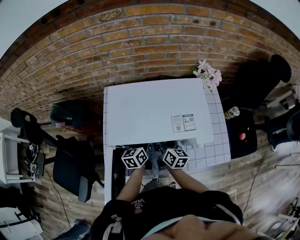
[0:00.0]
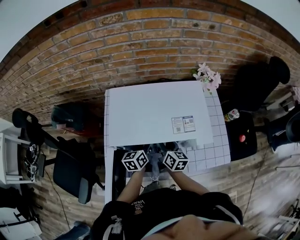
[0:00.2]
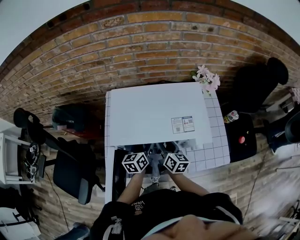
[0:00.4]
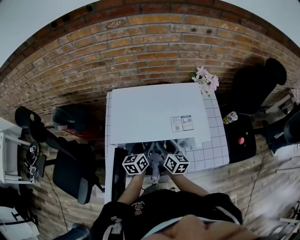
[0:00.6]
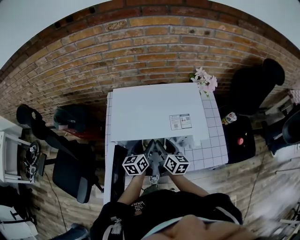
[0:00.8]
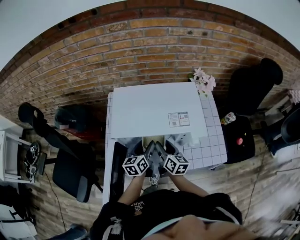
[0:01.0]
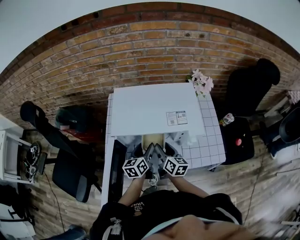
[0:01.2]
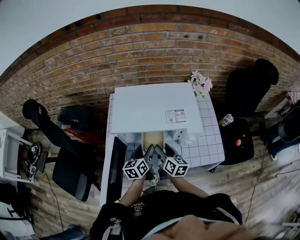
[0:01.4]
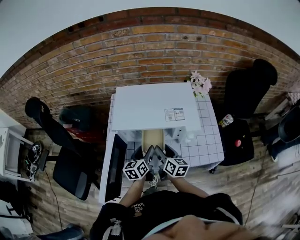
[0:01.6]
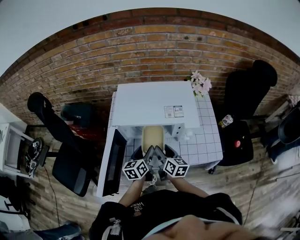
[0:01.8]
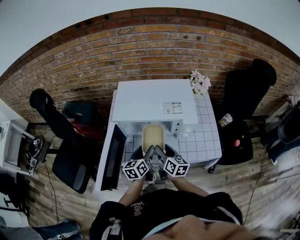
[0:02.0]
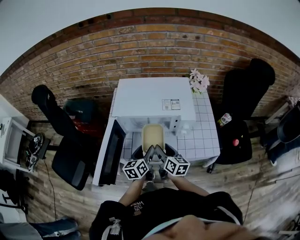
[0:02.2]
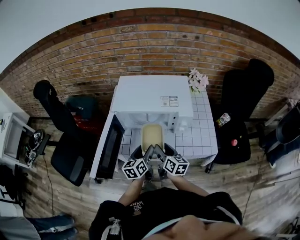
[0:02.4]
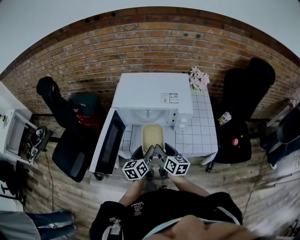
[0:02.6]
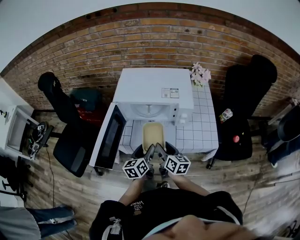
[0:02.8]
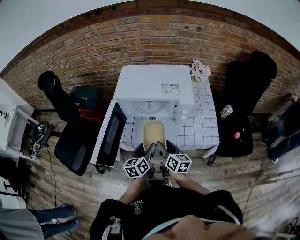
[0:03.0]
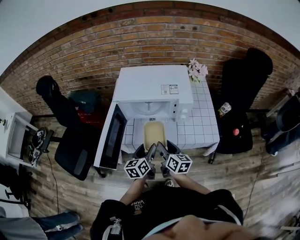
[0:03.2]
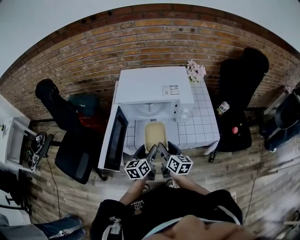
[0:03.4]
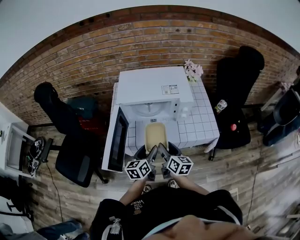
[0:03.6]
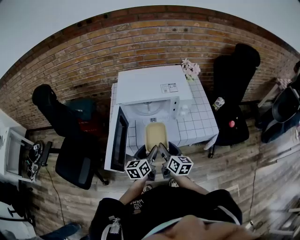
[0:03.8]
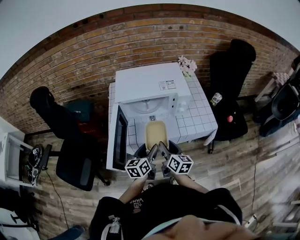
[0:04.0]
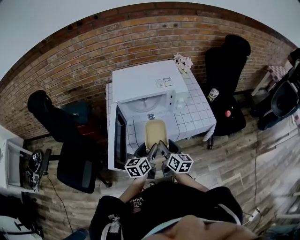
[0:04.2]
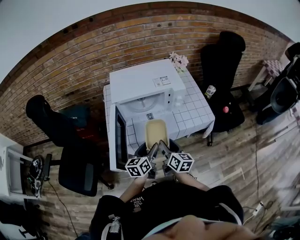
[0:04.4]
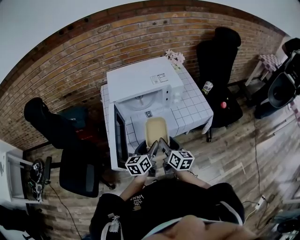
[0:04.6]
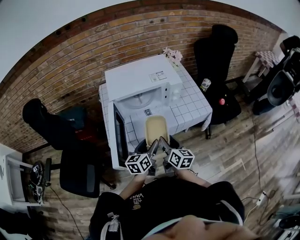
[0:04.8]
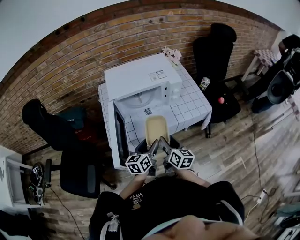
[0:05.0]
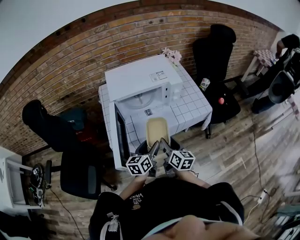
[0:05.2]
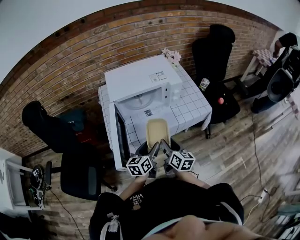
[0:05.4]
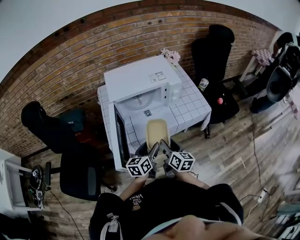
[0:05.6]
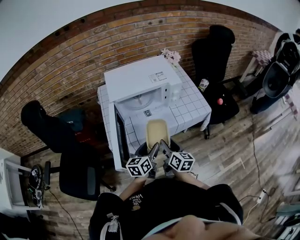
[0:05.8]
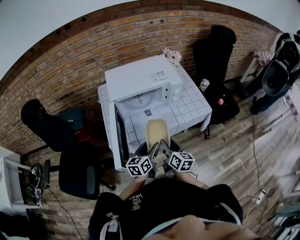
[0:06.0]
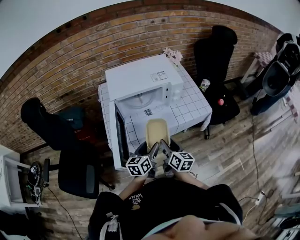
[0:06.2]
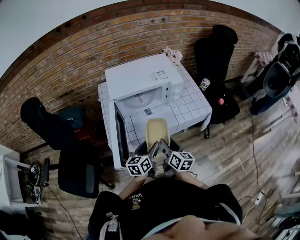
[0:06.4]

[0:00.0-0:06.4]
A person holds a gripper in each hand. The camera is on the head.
0:00.0 to 0:01.6: The two grippers go roughly 10 cm backward.
0:01.6 to 0:03.2: The grippers both shift backward by about 15 cm.
0:03.2 to 0:04.8: The two grippers go about 5 cm backward. The left gripper changes its angle by roughly 20 degrees. Meanwhile the right gripper rotates roughly 20 degrees.
0:04.8 to 0:06.4: The grippers stay close to where they were, moving slightly.

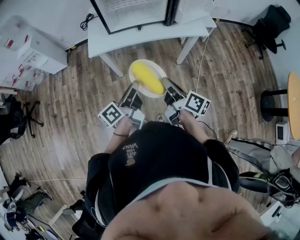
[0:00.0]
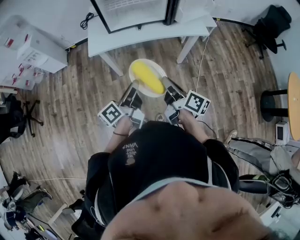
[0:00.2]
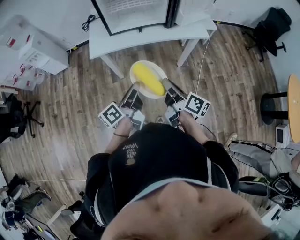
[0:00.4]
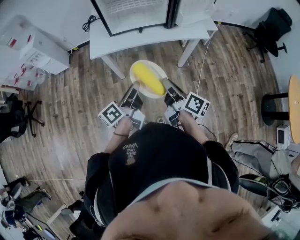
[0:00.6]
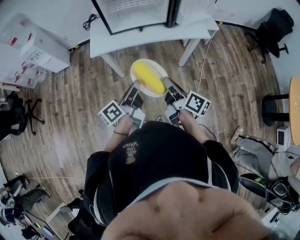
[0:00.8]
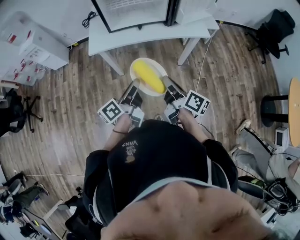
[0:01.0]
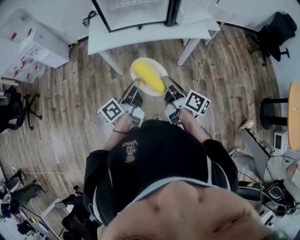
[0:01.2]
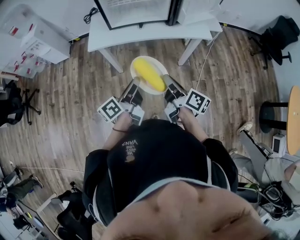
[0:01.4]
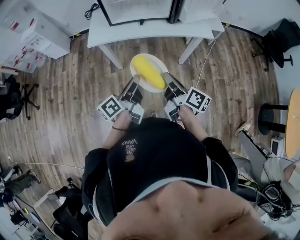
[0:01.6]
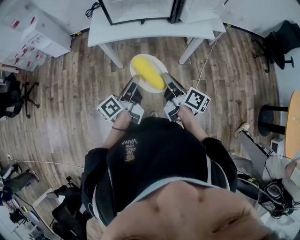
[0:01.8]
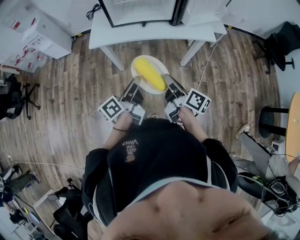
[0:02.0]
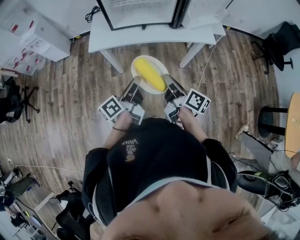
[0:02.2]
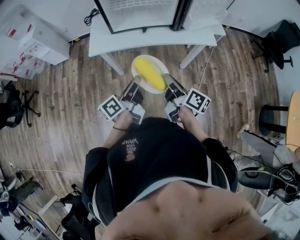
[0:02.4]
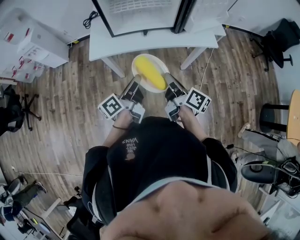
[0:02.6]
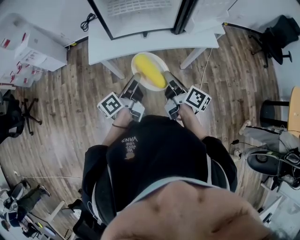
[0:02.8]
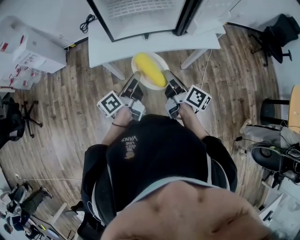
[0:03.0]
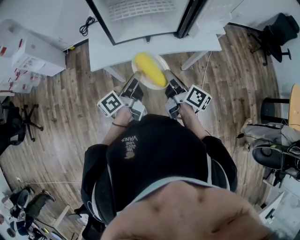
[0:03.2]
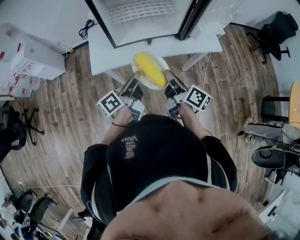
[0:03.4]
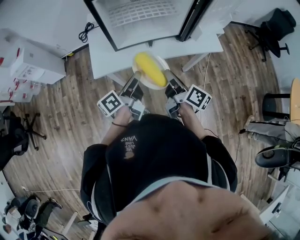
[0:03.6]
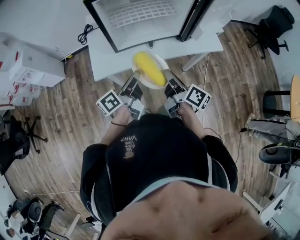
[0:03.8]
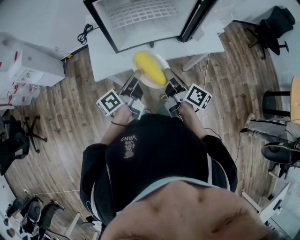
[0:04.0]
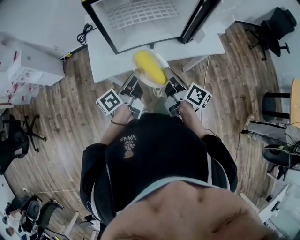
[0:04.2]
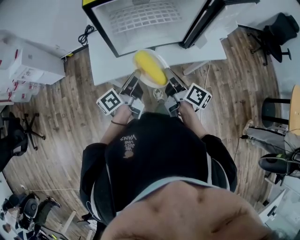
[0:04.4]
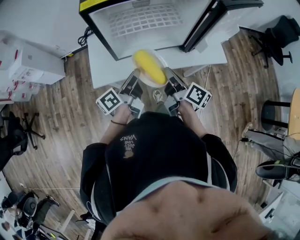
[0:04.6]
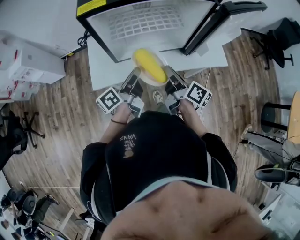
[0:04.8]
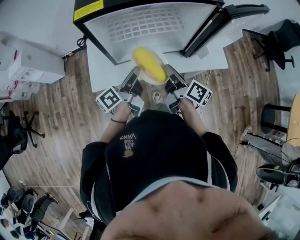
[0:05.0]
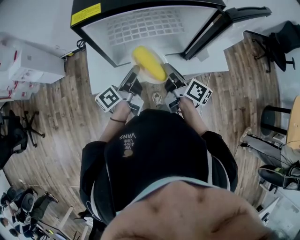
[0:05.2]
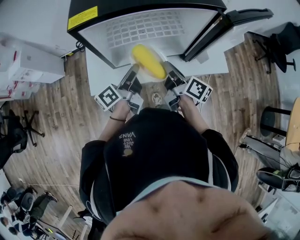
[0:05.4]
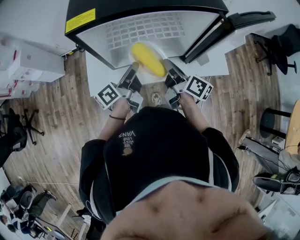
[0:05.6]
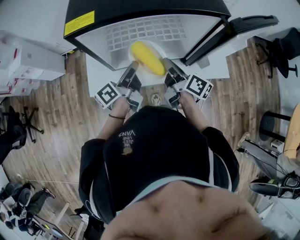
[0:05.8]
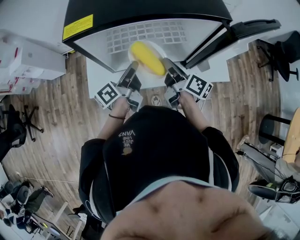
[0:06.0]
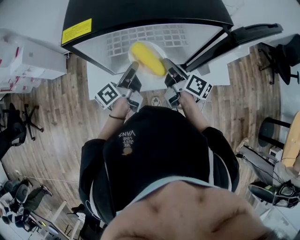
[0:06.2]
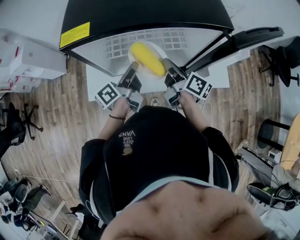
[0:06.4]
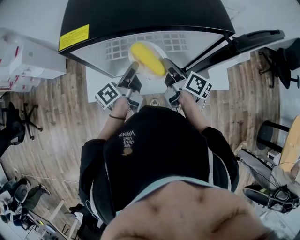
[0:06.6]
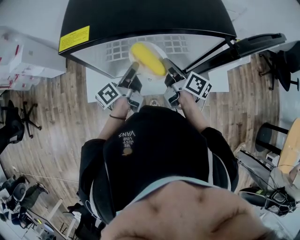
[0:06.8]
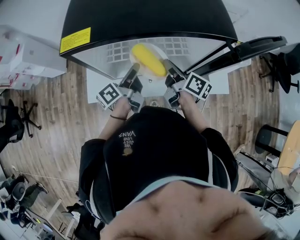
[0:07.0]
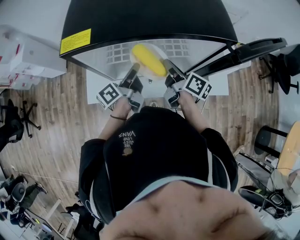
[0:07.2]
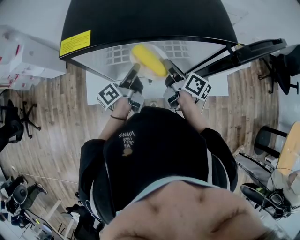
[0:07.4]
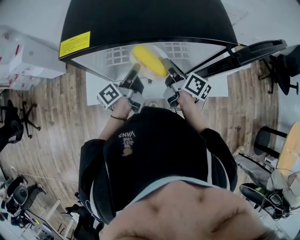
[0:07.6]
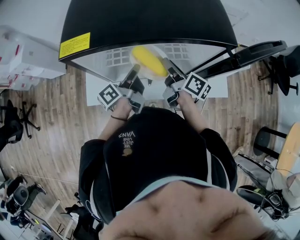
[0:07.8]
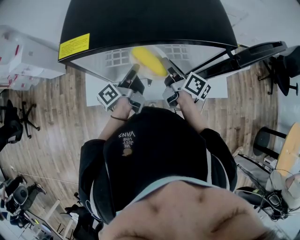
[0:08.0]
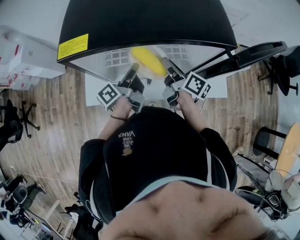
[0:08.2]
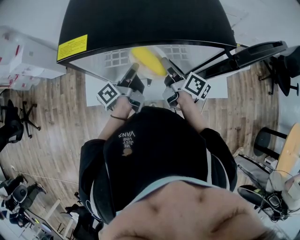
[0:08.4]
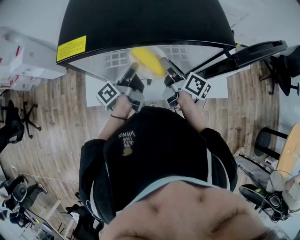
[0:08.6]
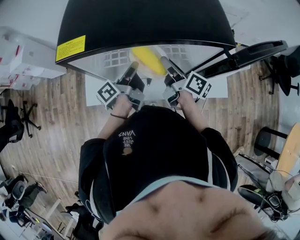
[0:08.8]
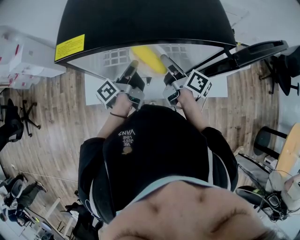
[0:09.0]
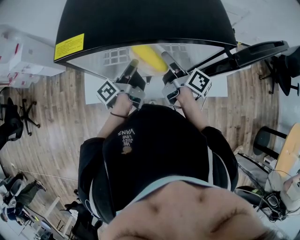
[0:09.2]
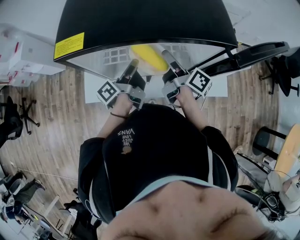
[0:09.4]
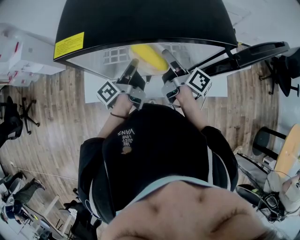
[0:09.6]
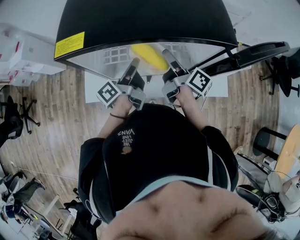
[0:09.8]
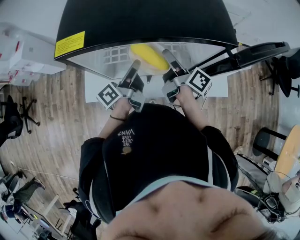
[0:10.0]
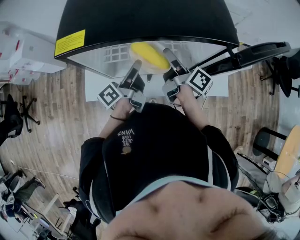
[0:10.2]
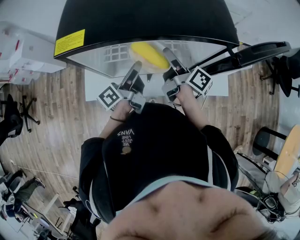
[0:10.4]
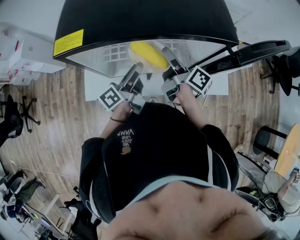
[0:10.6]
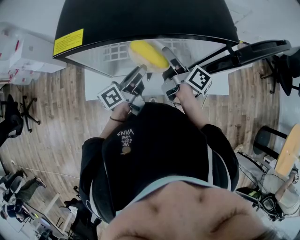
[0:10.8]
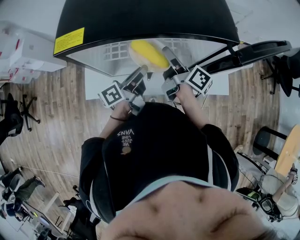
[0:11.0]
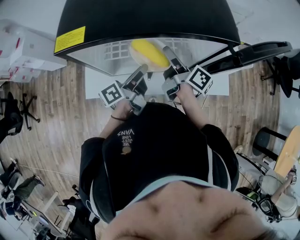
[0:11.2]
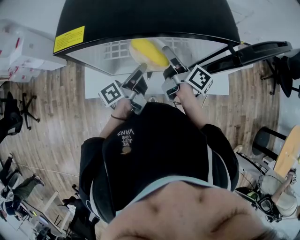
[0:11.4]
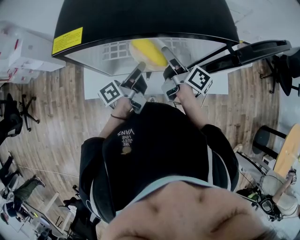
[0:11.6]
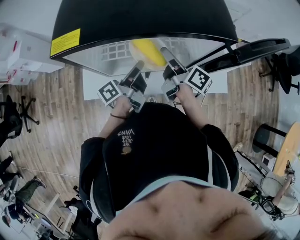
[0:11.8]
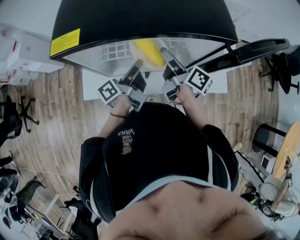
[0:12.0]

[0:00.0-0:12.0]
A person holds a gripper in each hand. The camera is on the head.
0:00.0 to 0:01.6: The right gripper ends up roughly 5 cm from where it was.
0:01.6 to 0:03.0: The left gripper is displaced forward by about 15 cm; the right gripper is displaced forward and to the left by approximately 15 cm.
0:03.0 to 0:04.4: The two grippers go some 10 cm forward.
0:04.4 to 0:06.0: Both grippers move forward, some 15 cm.
0:06.0 to 0:07.6: Both grippers travel together forward, approximately 5 cm.
0:07.6 to 0:09.0: The right gripper opens up.
0:09.0 to 0:10.4: The grippers move only a little.
0:10.4 to 0:12.0: The grippers move only a little.

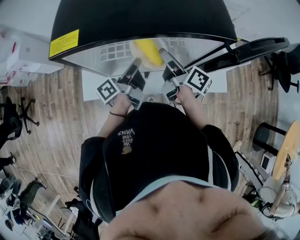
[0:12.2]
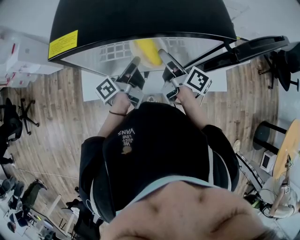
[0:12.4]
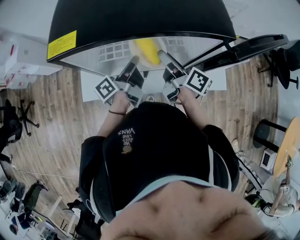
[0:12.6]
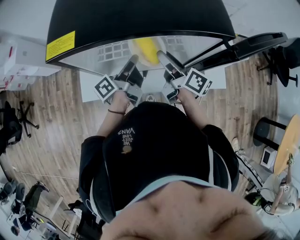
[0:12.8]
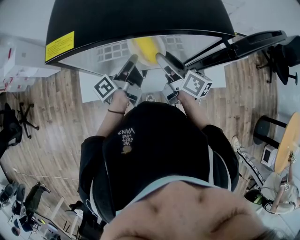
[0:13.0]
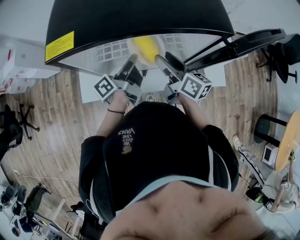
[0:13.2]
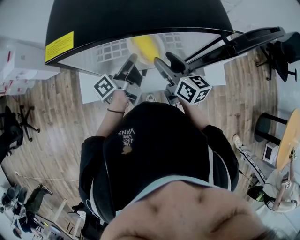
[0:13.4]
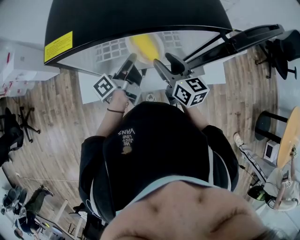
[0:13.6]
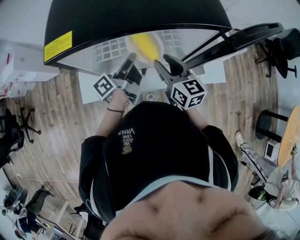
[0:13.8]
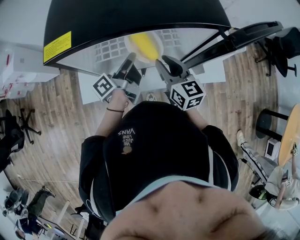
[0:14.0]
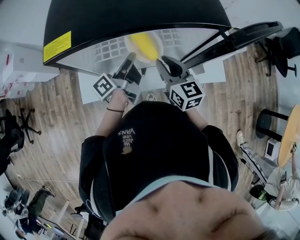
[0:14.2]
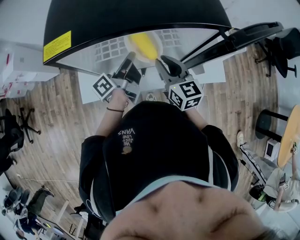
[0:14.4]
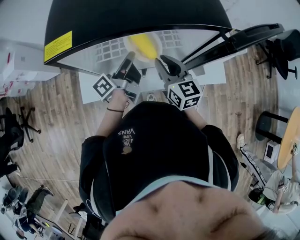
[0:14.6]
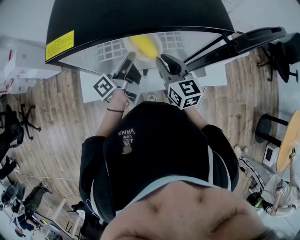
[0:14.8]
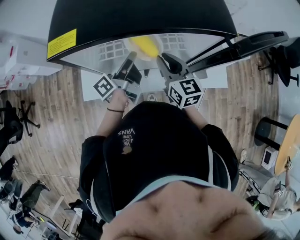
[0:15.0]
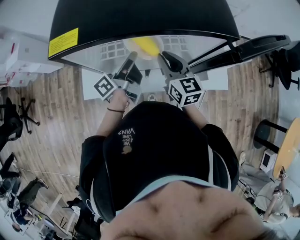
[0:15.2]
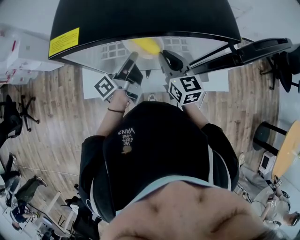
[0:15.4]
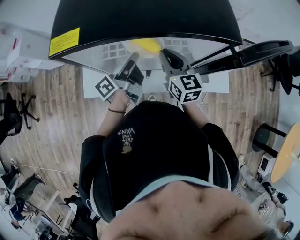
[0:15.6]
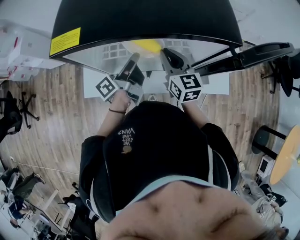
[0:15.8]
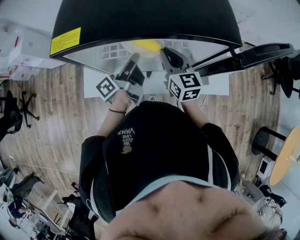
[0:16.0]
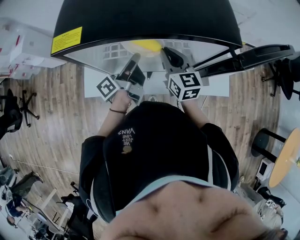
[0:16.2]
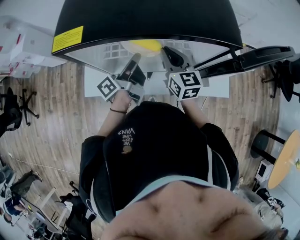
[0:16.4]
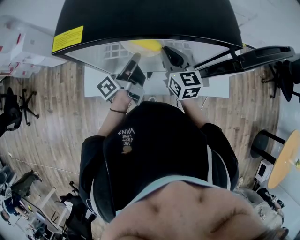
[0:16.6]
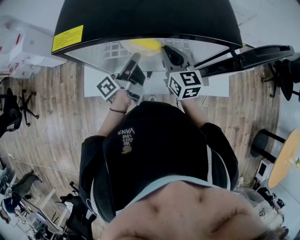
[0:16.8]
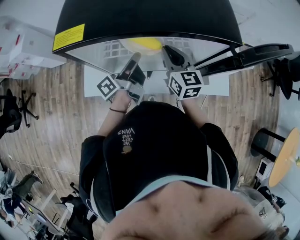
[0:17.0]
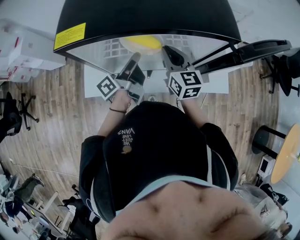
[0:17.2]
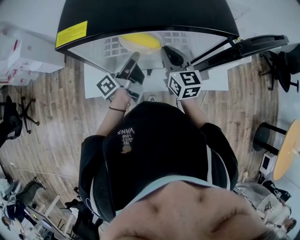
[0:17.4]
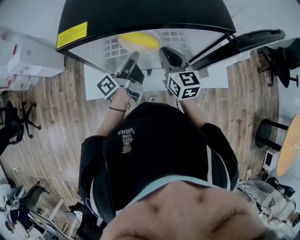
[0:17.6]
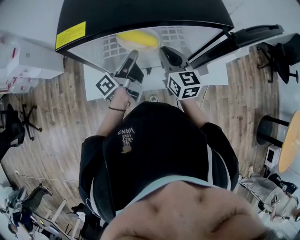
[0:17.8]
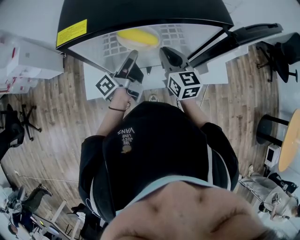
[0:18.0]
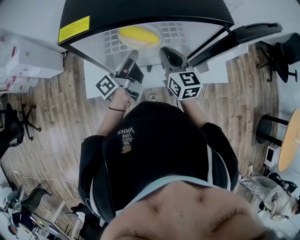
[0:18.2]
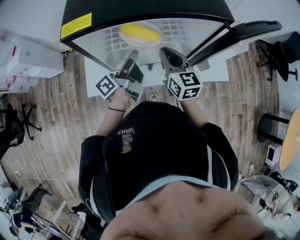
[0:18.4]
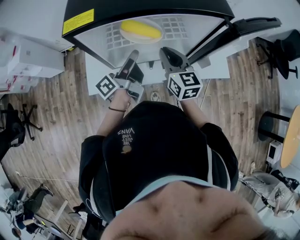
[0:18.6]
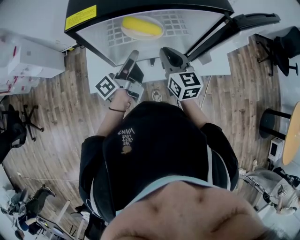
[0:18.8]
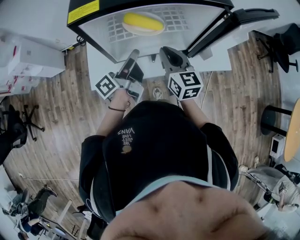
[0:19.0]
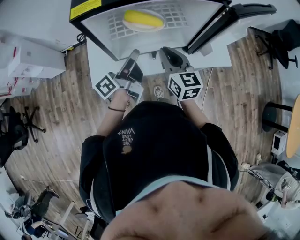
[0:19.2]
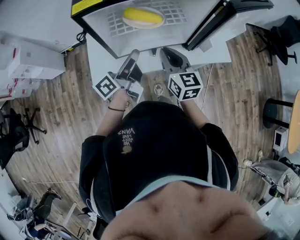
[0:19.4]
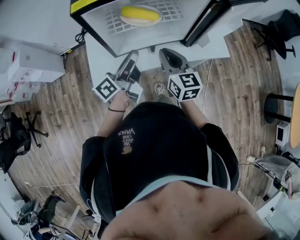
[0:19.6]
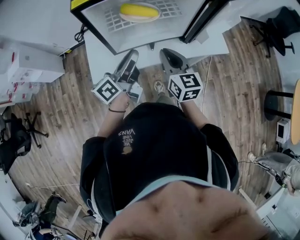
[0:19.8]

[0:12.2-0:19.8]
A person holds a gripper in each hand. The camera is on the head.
0:12.2 to 0:13.8: The right gripper rolls counterclockwise, seen from behind, by some 50 degrees.
0:13.8 to 0:15.2: The right gripper closes its fingers.
0:15.2 to 0:16.8: There are only small adjustments of the grippers.
0:16.8 to 0:18.2: The left gripper opens.
0:18.2 to 0:19.8: Both grippers travel together backward, some 15 cm. The left gripper changes its angle by some 20 degrees.
